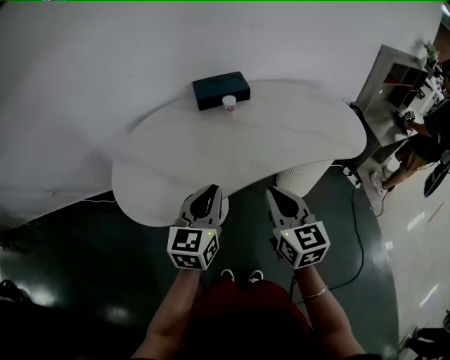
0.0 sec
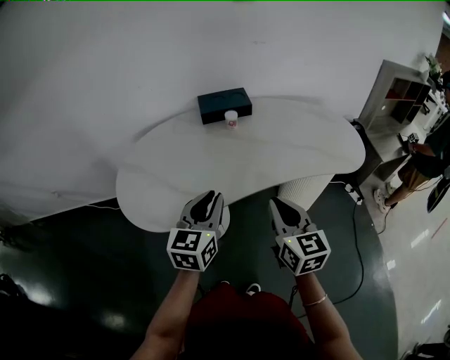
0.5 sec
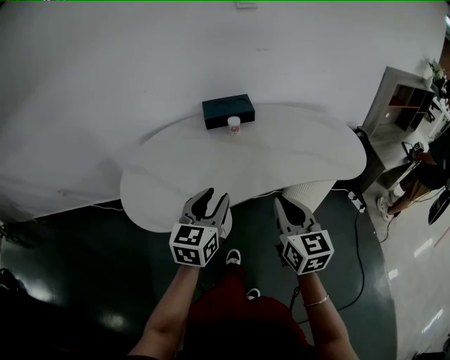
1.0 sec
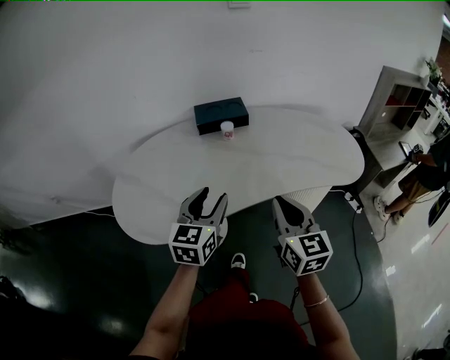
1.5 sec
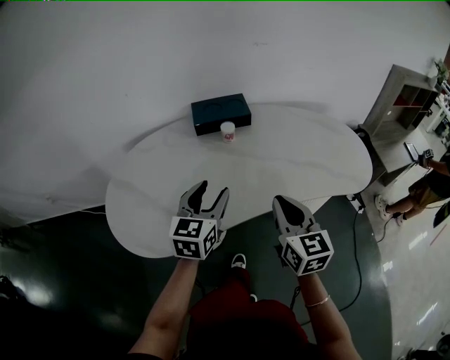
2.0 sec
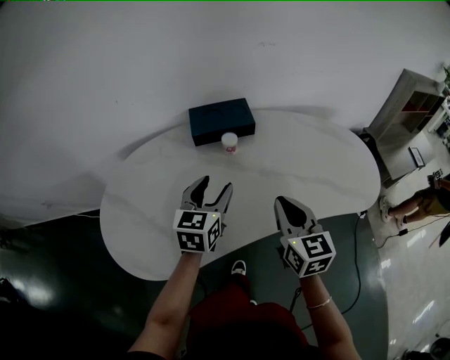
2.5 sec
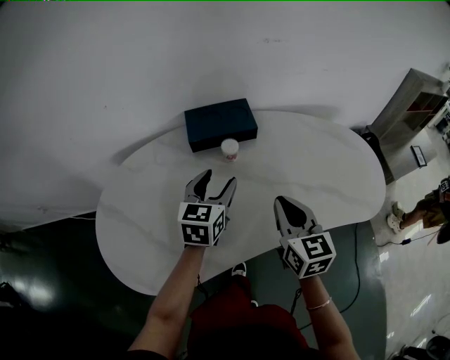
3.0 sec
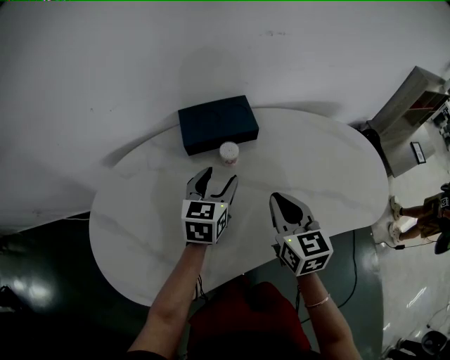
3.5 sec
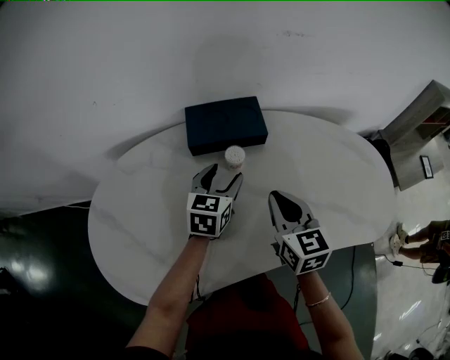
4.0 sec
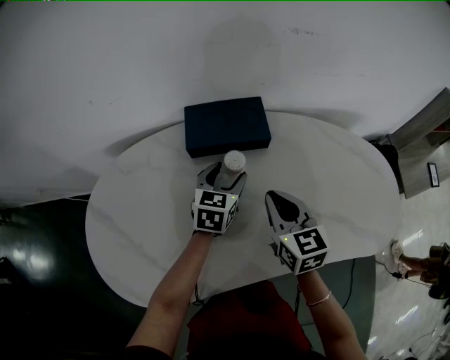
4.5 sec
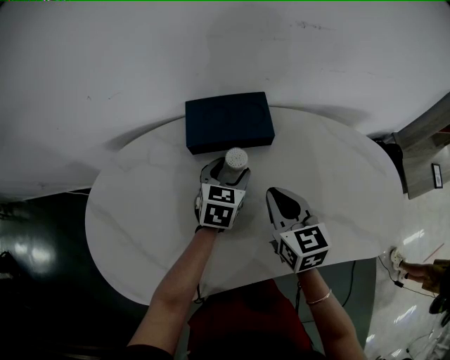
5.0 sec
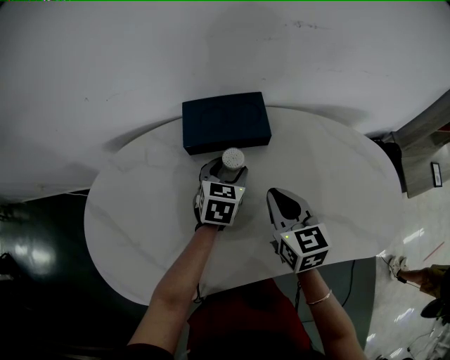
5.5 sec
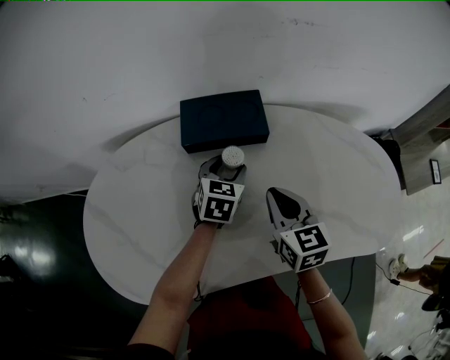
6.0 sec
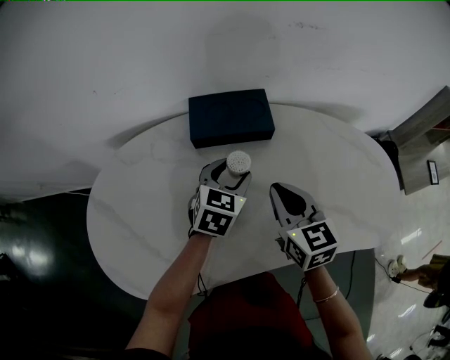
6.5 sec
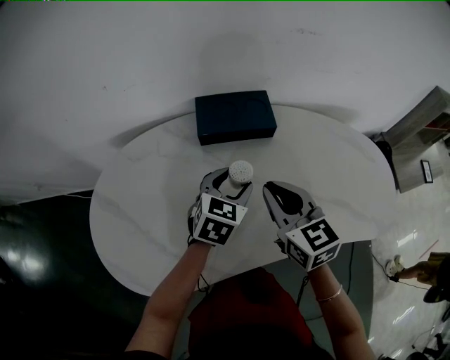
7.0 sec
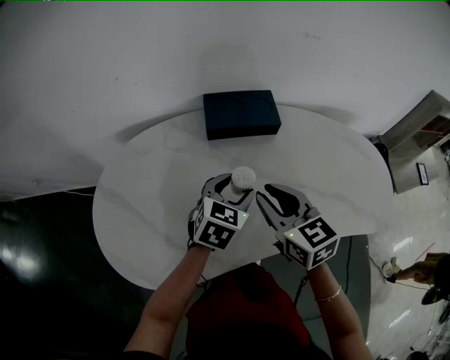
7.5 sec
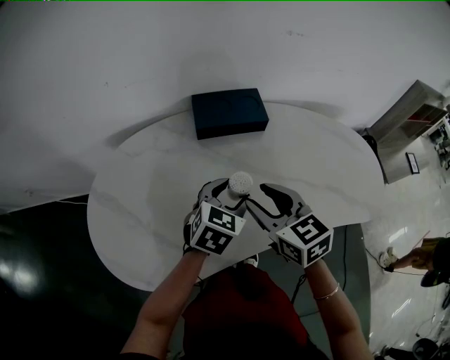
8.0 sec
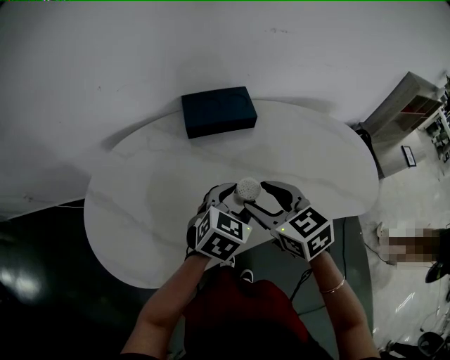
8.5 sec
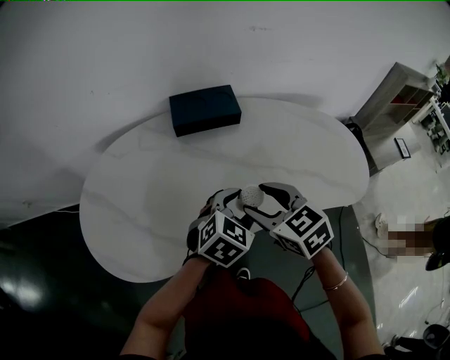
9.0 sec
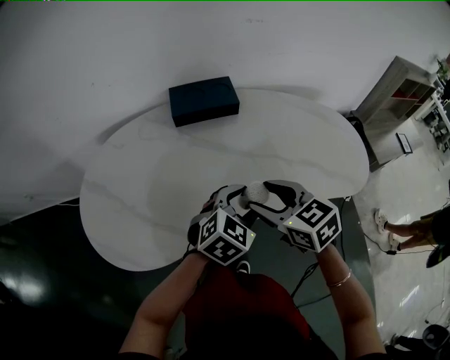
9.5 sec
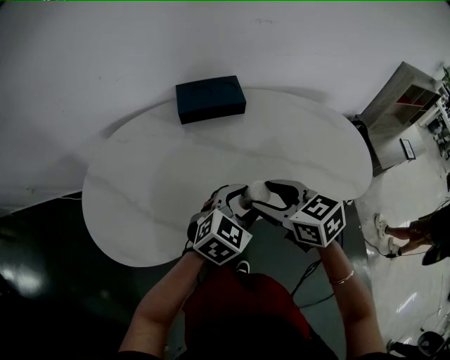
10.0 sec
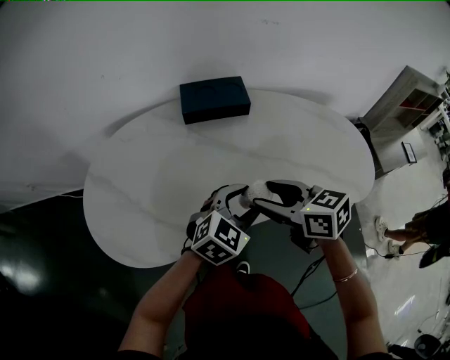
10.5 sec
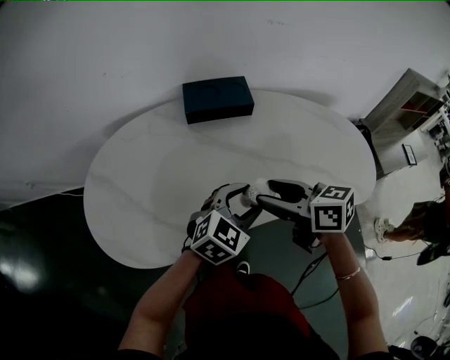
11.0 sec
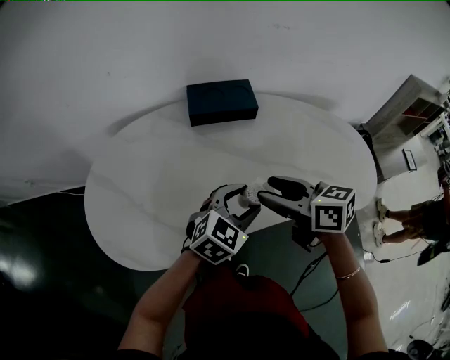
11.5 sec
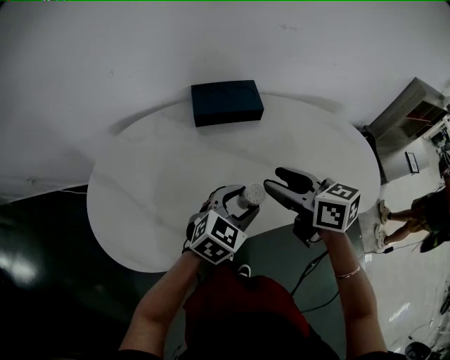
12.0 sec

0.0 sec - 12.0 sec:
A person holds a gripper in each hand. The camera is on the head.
0.0 sec - 2.0 sec: The right gripper is displaced forward and to the right by roughly 10 cm. The left gripper is displaced forward by approximately 10 cm, and opens up.
2.0 sec - 4.0 sec: The left gripper shifts roughly 25 cm forward and downward, while the right gripper is displaced forward by about 20 cm.
4.0 sec - 6.0 sec: The left gripper moves about 5 cm.
6.0 sec - 8.0 sec: The right gripper moves backward, to the left and upward, about 15 cm, and opens up. Meanwhile the left gripper heads backward and upward, covering approximately 20 cm.
8.0 sec - 10.0 sec: Both grippers move backward and to the right, approximately 15 cm.
10.0 sec - 12.0 sec: The right gripper travels forward by about 5 cm. Meanwhile the left gripper moves approximately 5 cm.

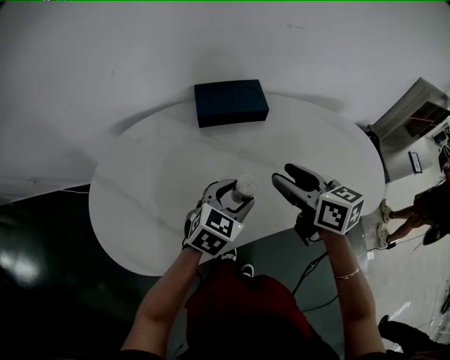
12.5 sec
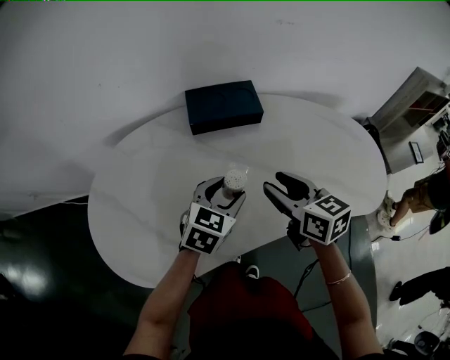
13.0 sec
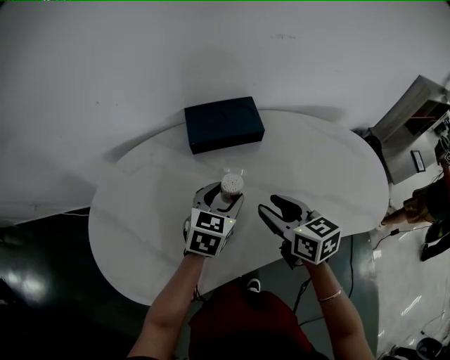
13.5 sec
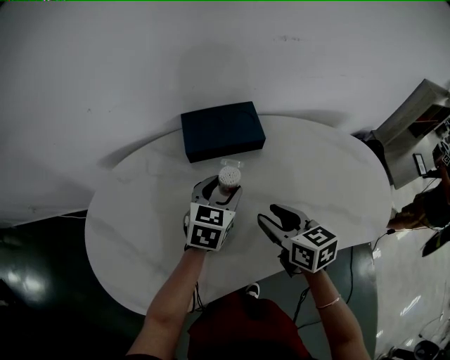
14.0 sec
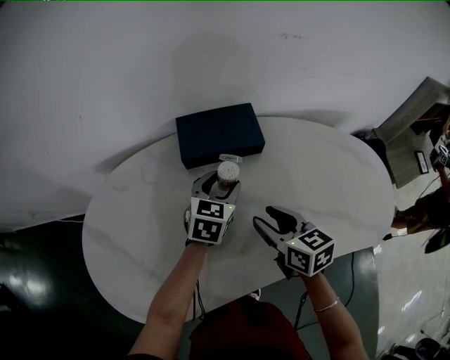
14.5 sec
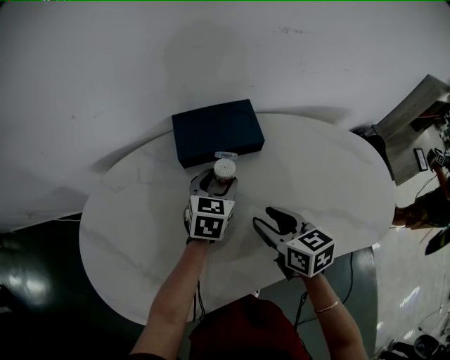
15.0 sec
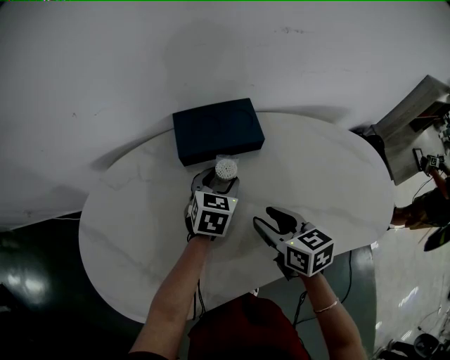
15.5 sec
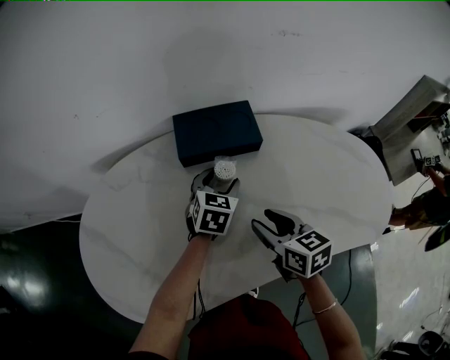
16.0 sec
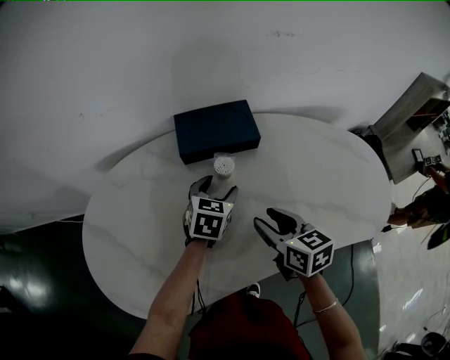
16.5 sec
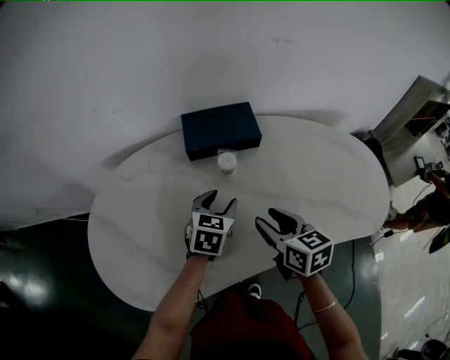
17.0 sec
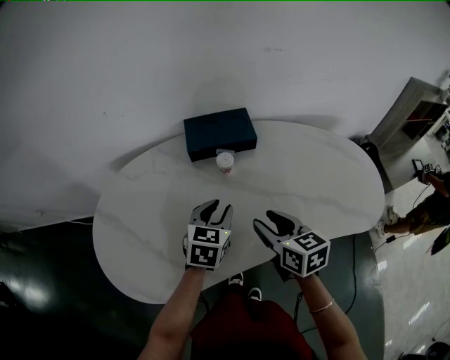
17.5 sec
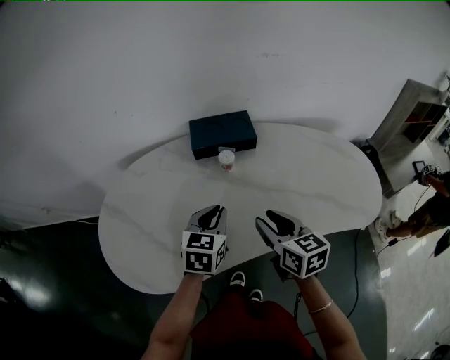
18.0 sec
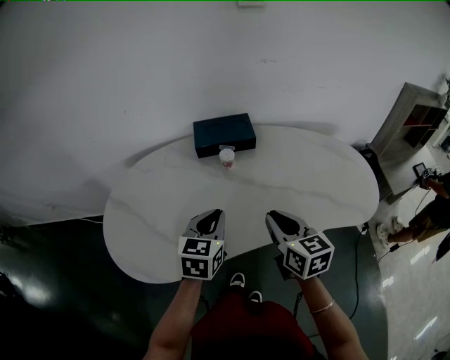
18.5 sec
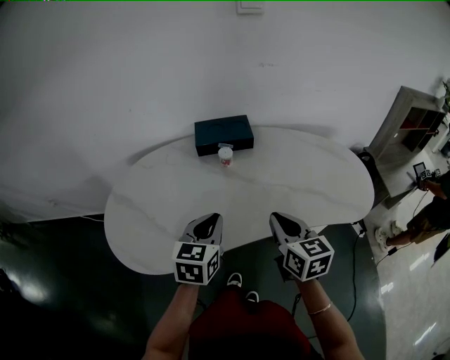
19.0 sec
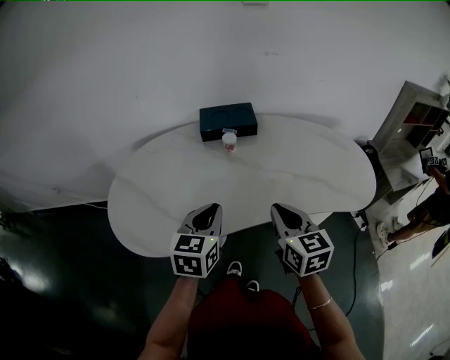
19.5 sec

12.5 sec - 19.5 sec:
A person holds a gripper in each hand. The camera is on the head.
12.5 sec - 14.5 sec: The right gripper moves downward and forward, approximately 10 cm; the left gripper goes approximately 20 cm forward.
14.5 sec - 16.0 sec: There are only small adjustments of the grippers.
16.0 sec - 17.5 sec: The right gripper shifts roughly 5 cm backward; the left gripper heads backward and upward, covering some 15 cm, and closes its fingers.
17.5 sec - 19.5 sec: The grippers both shift backward and upward by approximately 15 cm. The right gripper closes up. The left gripper closes up.

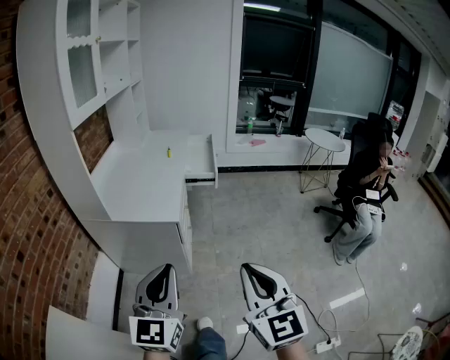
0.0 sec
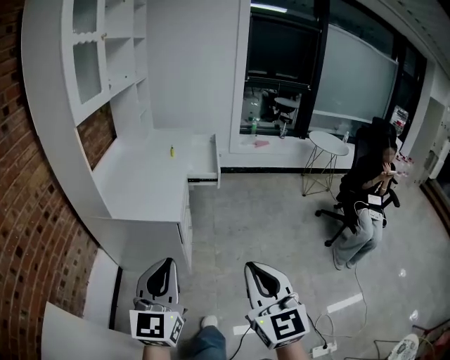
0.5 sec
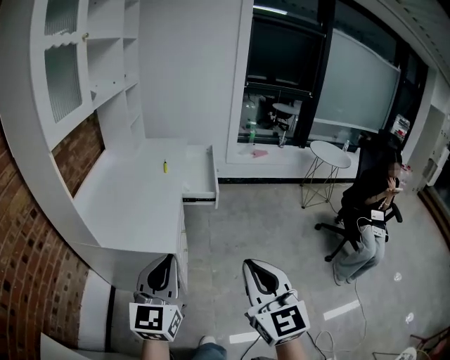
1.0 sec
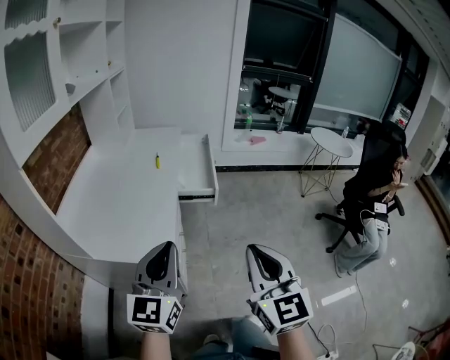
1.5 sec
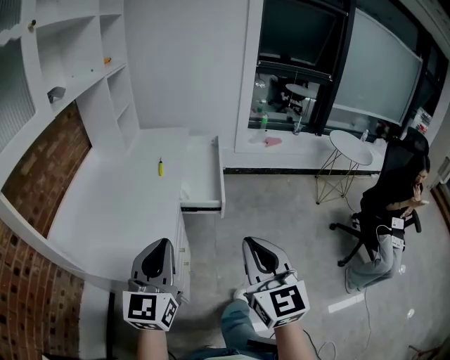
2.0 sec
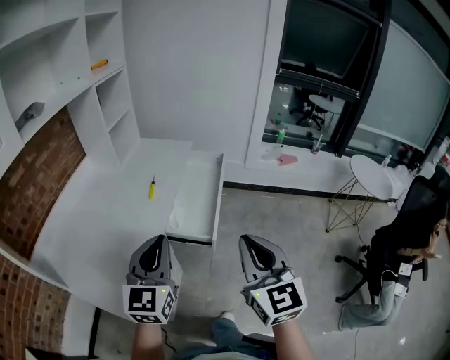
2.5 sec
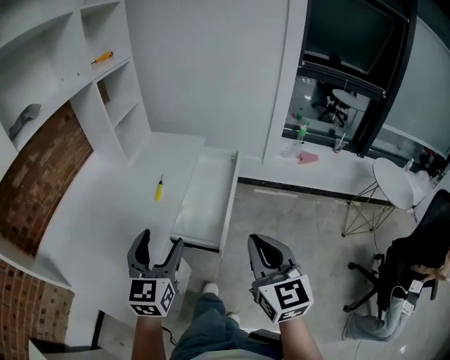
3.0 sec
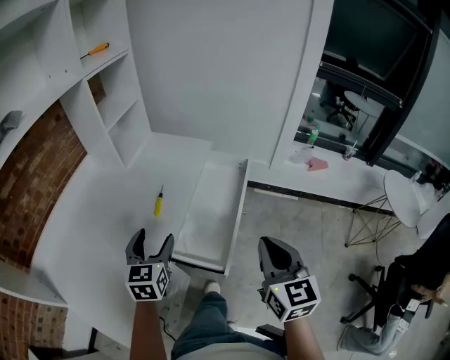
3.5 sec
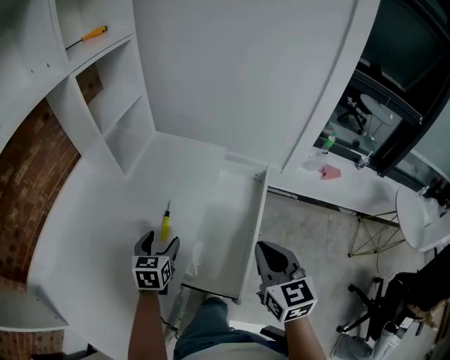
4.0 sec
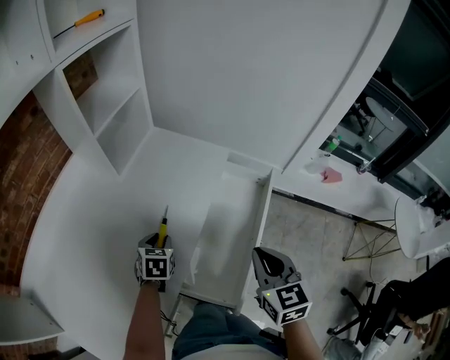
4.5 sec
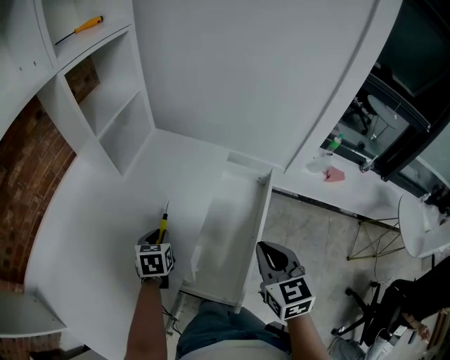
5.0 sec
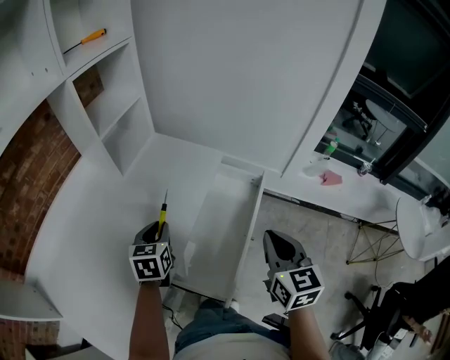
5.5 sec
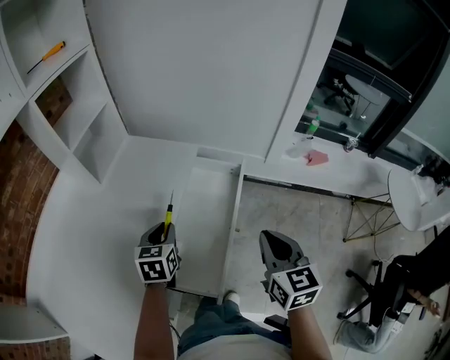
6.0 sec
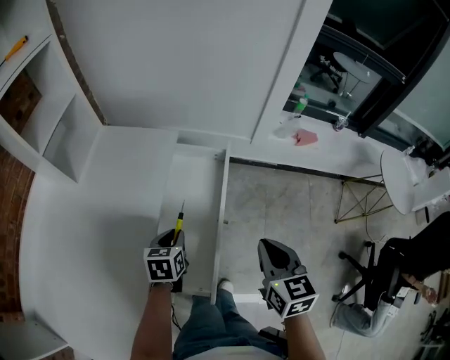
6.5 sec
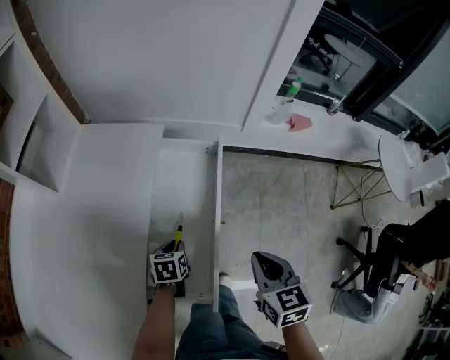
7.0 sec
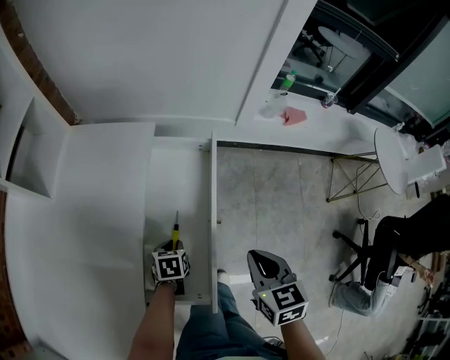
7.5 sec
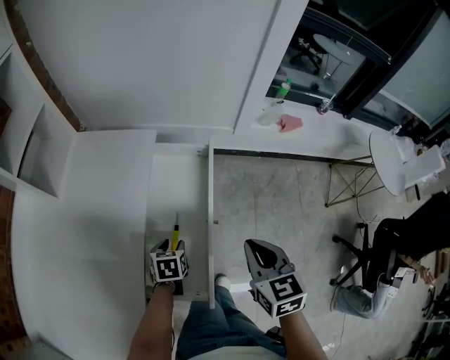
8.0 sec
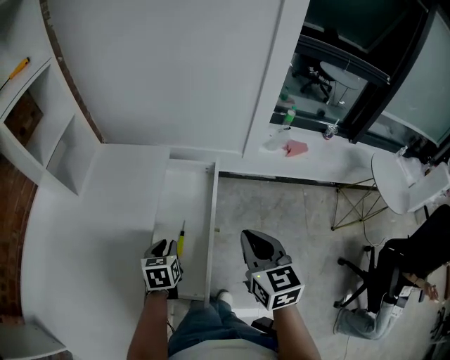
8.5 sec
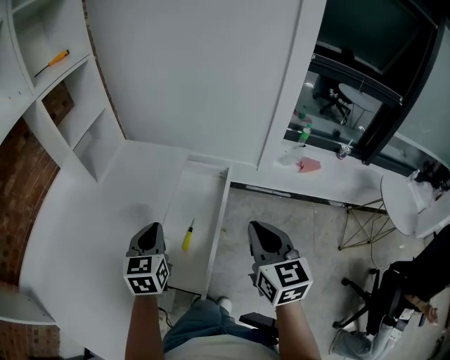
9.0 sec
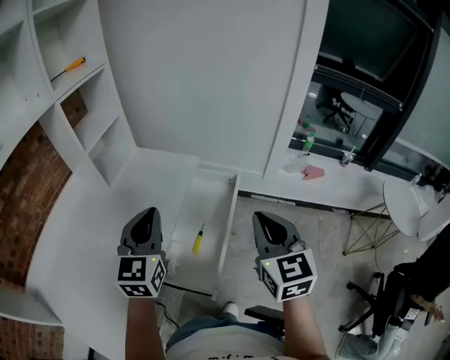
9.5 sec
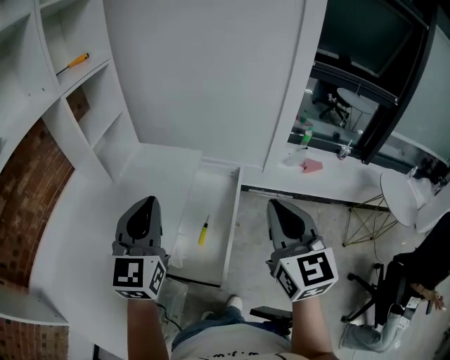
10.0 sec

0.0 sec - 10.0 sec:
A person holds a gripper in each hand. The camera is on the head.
0.0 sec - 2.0 sec: Both grippers are carried forward, roughly 40 cm.
2.0 sec - 4.0 sec: The two grippers travel together, forward, approximately 50 cm. The left gripper travels downward by roughly 25 cm, angles its fingers downward, by approximately 40 degrees, and opens its fingers. Meanwhile the right gripper swivels about 20 degrees.
4.0 sec - 6.0 sec: The two grippers go about 10 cm to the right. The left gripper travels downward and back again, roughly 5 cm each way, and closes up.
6.0 sec - 8.0 sec: The right gripper heads downward, covering approximately 10 cm. Meanwhile the left gripper travels downward and to the right by some 20 cm, and swivels about 30 degrees.
8.0 sec - 10.0 sec: The left gripper moves upward, approximately 40 cm, tips its fingers upward by some 60 degrees, and closes; the right gripper heads upward, covering about 25 cm, and points its fingers approximately 30 degrees further upward.
